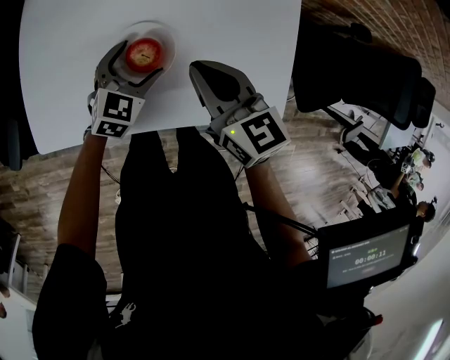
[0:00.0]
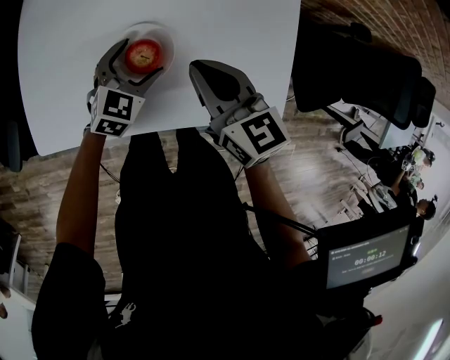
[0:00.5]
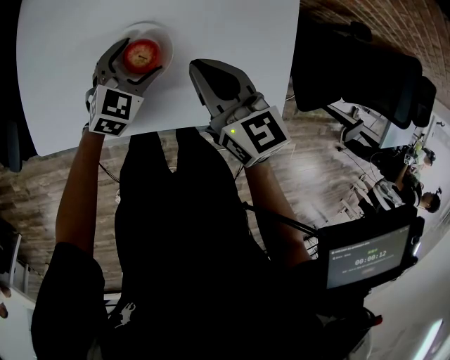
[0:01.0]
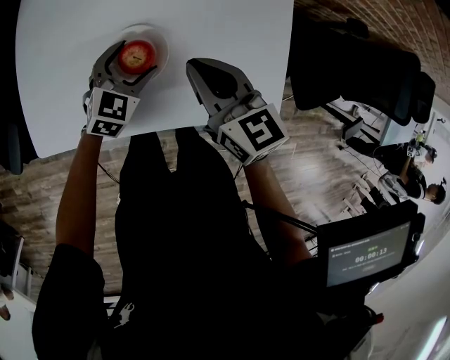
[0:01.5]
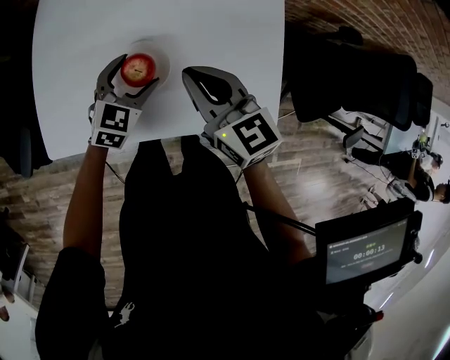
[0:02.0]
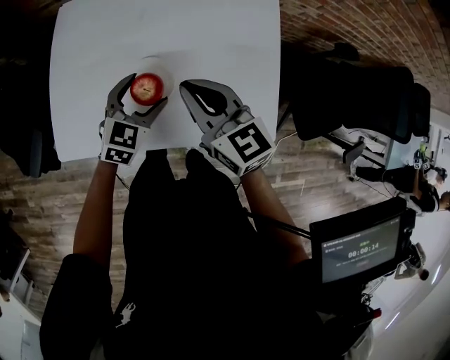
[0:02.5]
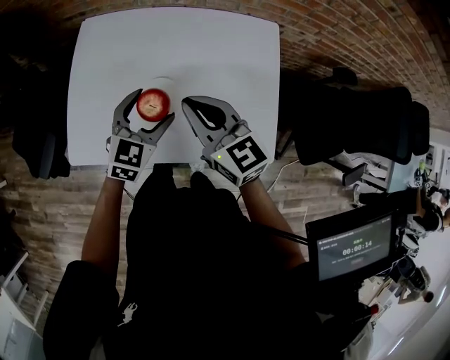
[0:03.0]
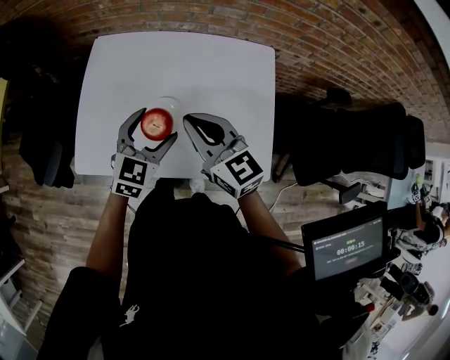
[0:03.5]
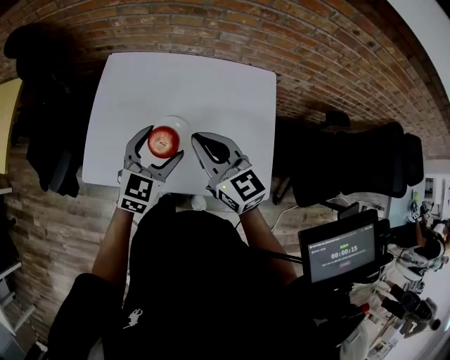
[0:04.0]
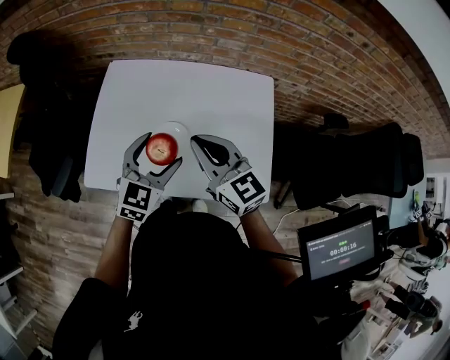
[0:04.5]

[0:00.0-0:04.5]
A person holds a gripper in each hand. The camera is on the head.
0:00.0 to 0:02.0: There are only small adjustments of the grippers.
0:02.0 to 0:04.5: The right gripper is displaced upward by approximately 10 cm, while the left gripper heads upward, covering approximately 20 cm.

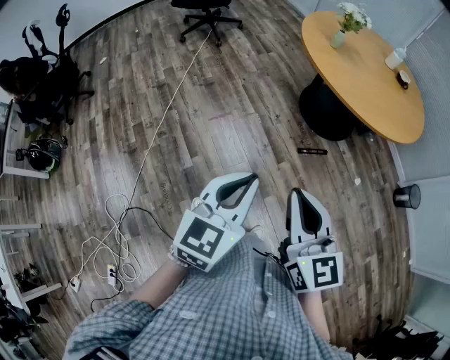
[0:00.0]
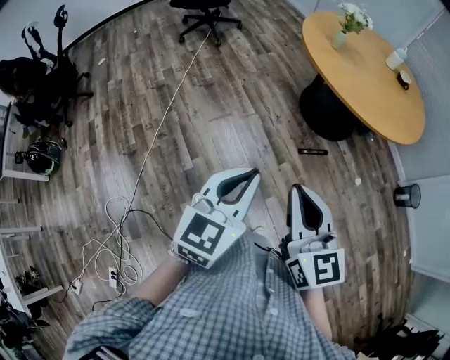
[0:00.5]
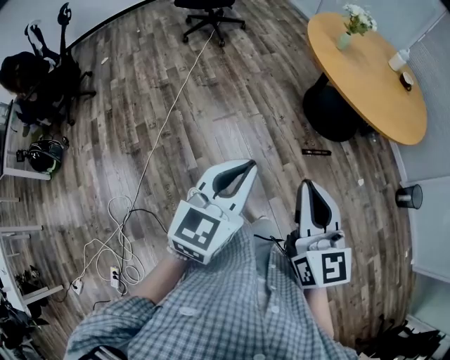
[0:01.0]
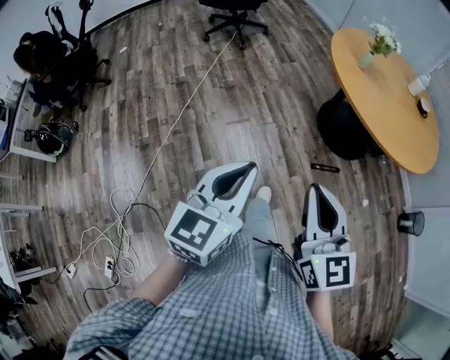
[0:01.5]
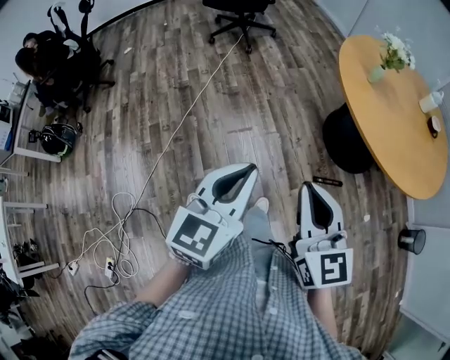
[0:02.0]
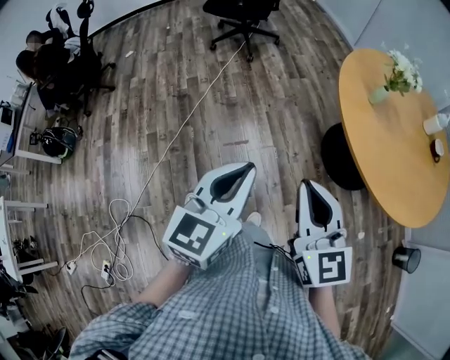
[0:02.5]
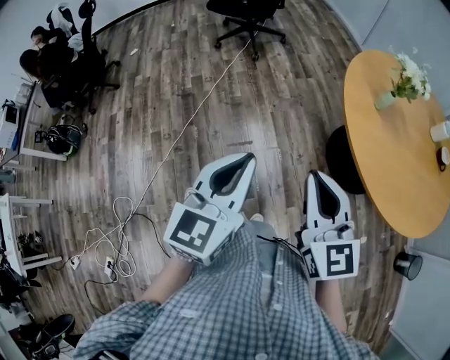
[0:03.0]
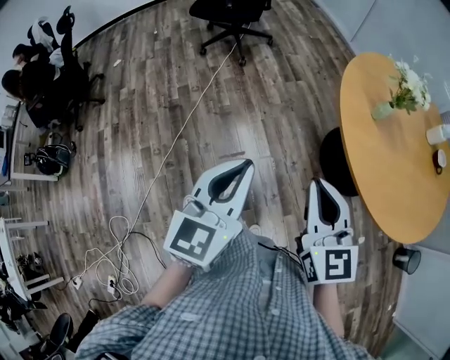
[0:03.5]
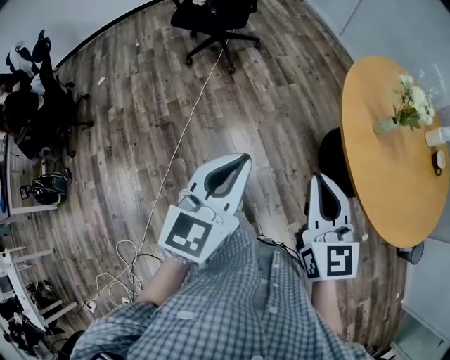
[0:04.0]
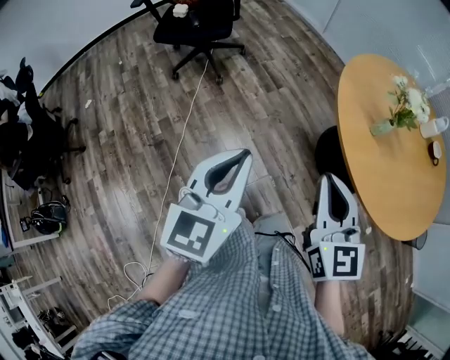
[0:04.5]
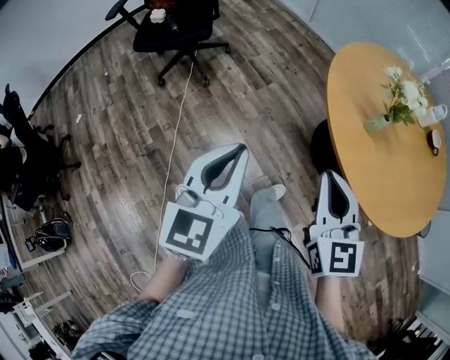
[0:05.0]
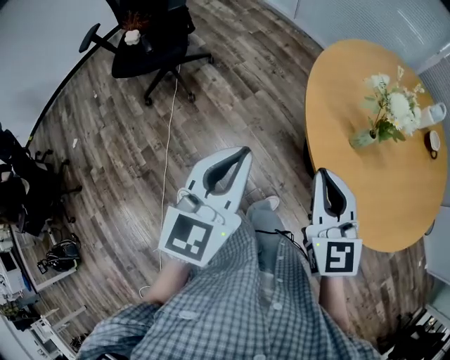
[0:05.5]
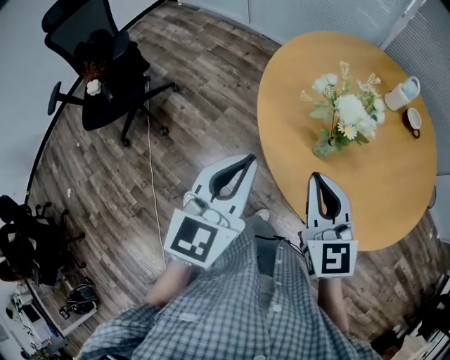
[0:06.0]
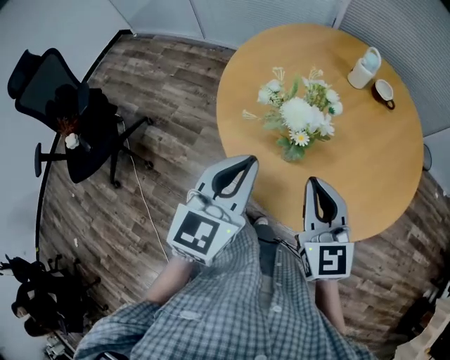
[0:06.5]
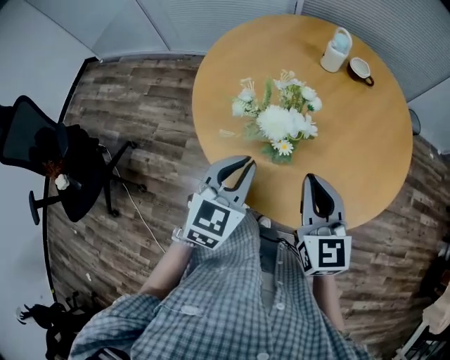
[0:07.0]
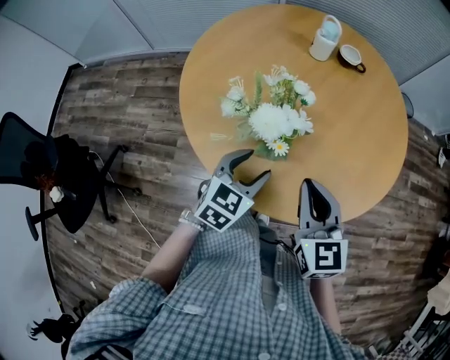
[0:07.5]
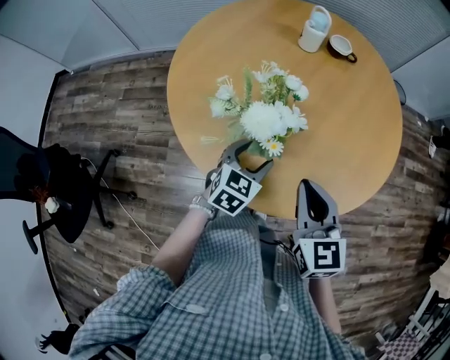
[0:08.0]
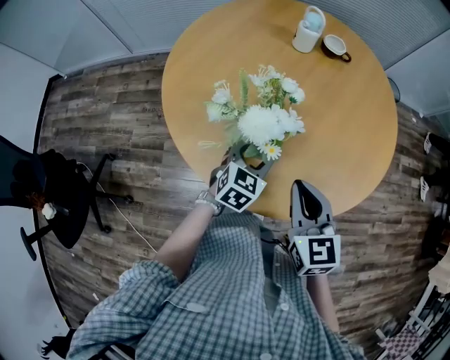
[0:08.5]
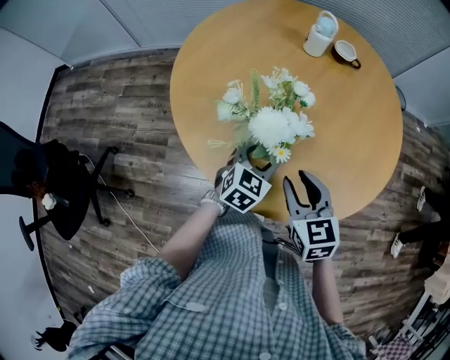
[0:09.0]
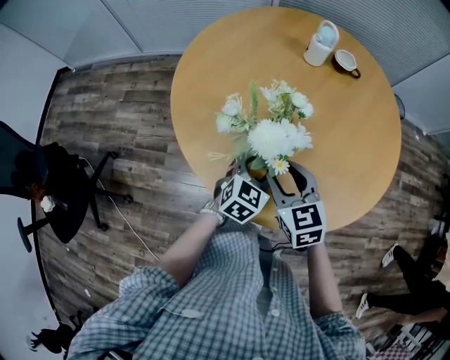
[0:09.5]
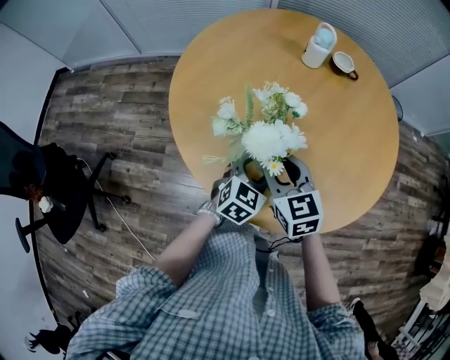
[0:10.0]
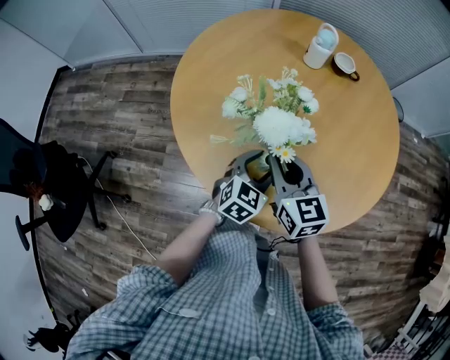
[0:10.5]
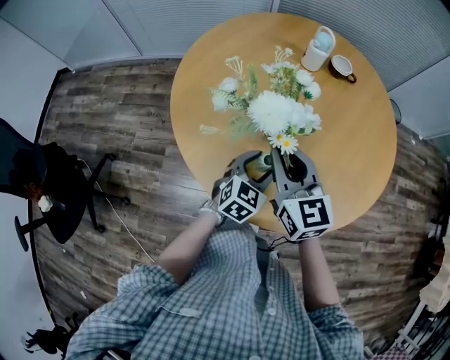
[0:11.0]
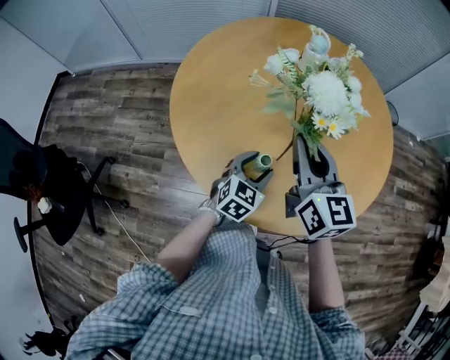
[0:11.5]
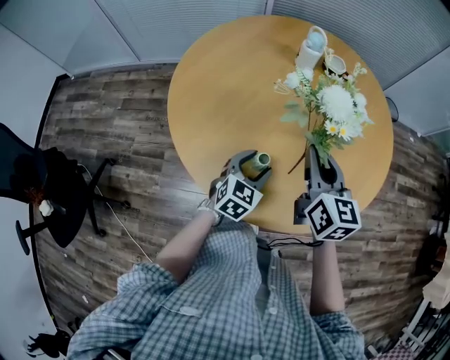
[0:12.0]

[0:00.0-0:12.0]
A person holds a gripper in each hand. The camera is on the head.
0:00.0 to 0:02.0: The grippers both shift forward by about 15 cm.
0:02.0 to 0:04.0: The two grippers go roughly 35 cm forward.
0:04.0 to 0:06.0: The right gripper moves some 30 cm, and changes its angle by about 30 degrees; the left gripper shifts by approximately 40 cm, and swivels approximately 30 degrees.
0:06.0 to 0:08.0: The left gripper changes place by approximately 30 cm, swivels some 50 degrees, and opens up; the right gripper changes place by approximately 10 cm, and changes its angle by approximately 40 degrees.
0:08.0 to 0:10.0: The right gripper moves forward, to the left and downward, about 15 cm, and opens up.
0:10.0 to 0:12.0: The right gripper heads to the right and upward, covering some 15 cm, turns by some 30 degrees, and closes its fingers.

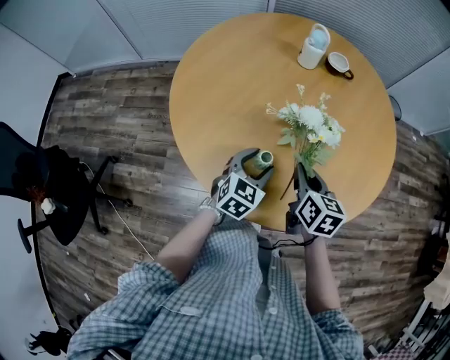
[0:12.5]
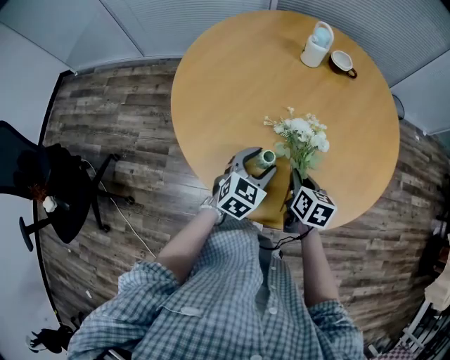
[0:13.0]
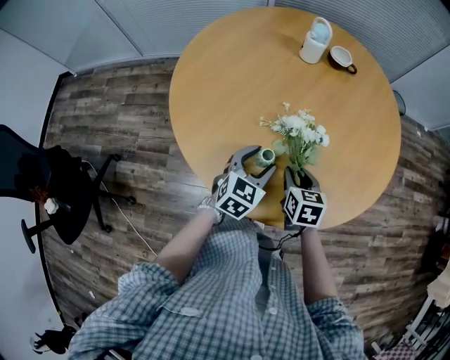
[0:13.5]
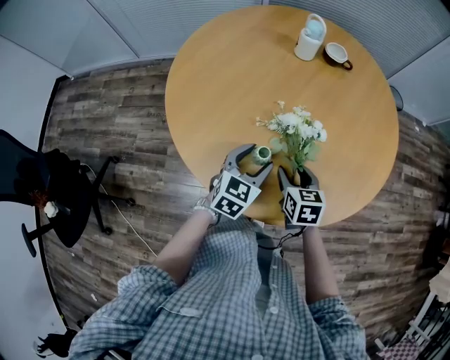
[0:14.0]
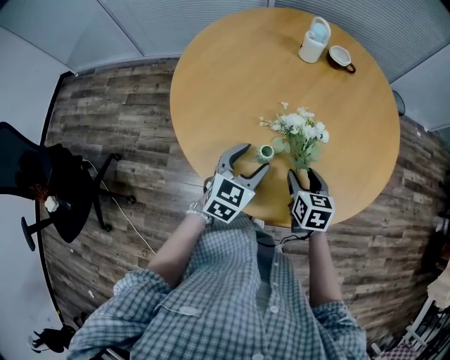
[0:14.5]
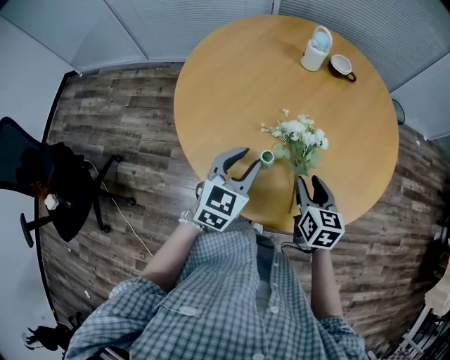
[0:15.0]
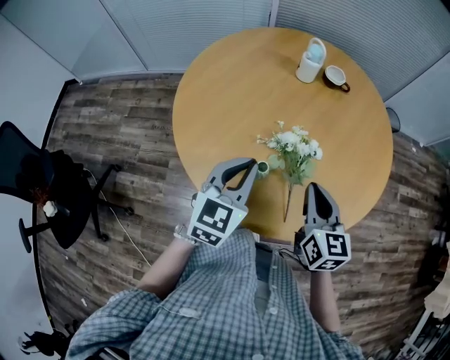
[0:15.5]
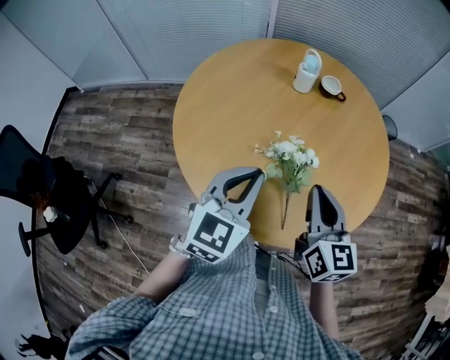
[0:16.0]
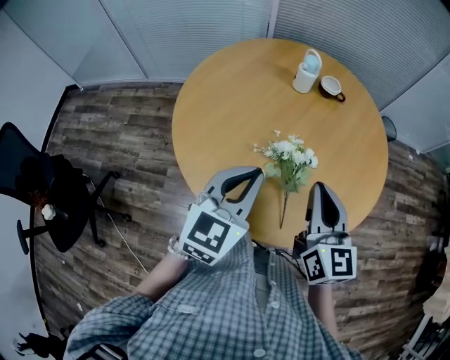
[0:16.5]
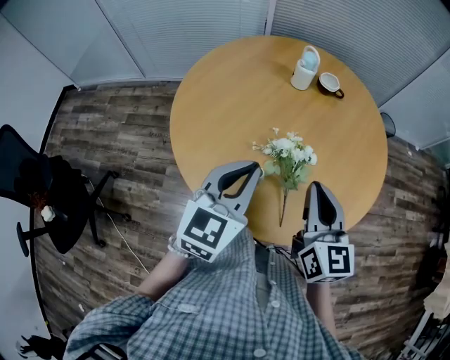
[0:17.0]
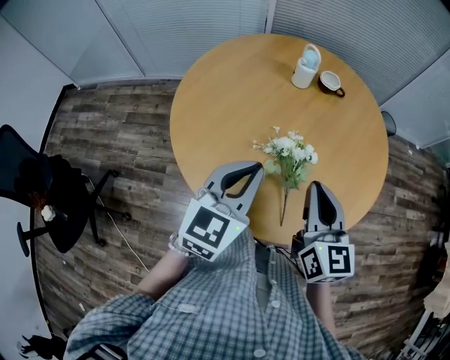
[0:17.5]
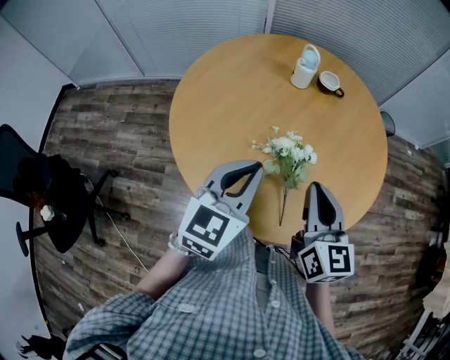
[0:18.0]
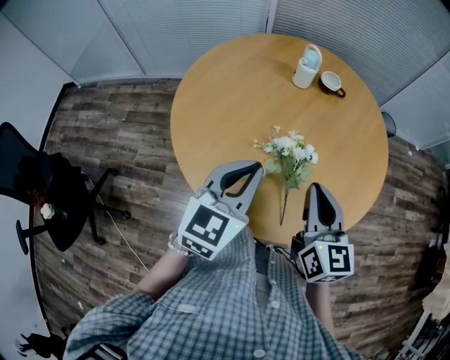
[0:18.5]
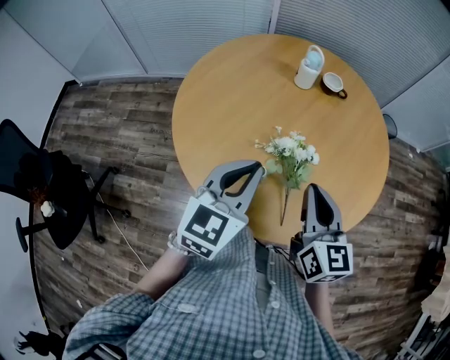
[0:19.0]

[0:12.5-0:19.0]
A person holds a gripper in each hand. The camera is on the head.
0:12.5 to 0:14.5: The right gripper heads downward, covering roughly 5 cm, and opens.
0:14.5 to 0:17.0: Both grippers move upward, roughly 20 cm. The left gripper closes its fingers, while the right gripper angles its fingers upward, by roughly 30 degrees, and closes.
0:17.0 to 0:19.0: The grippers stay close to where they were, moving slightly.

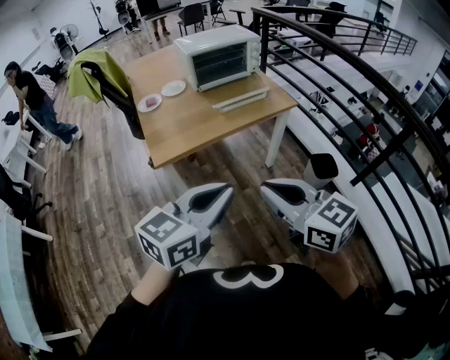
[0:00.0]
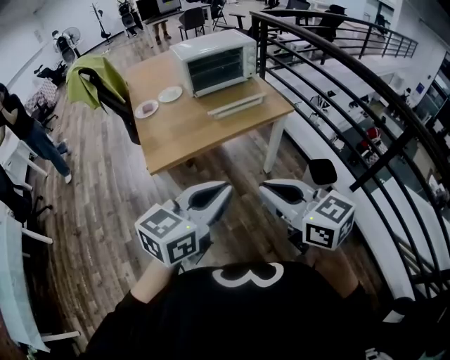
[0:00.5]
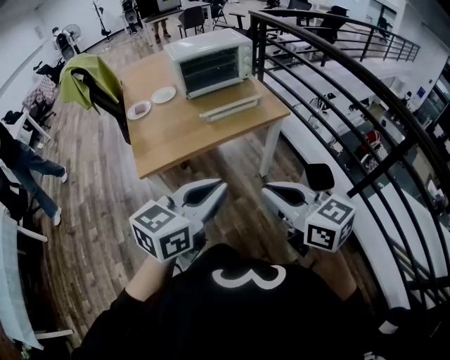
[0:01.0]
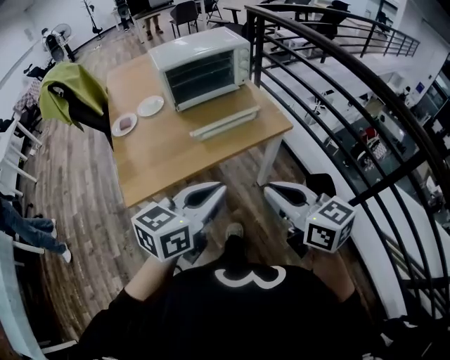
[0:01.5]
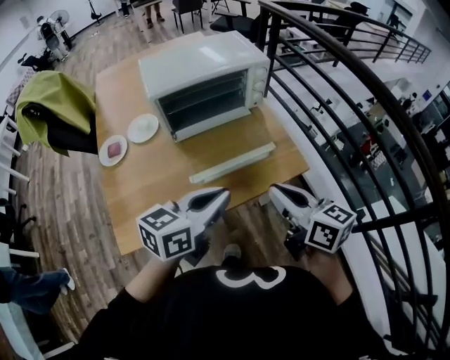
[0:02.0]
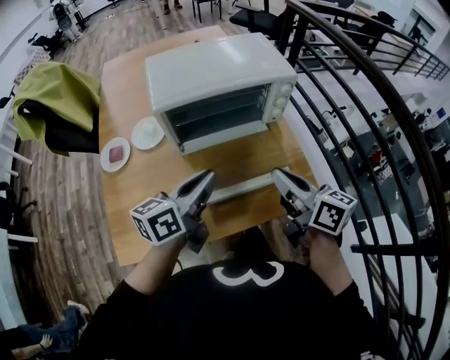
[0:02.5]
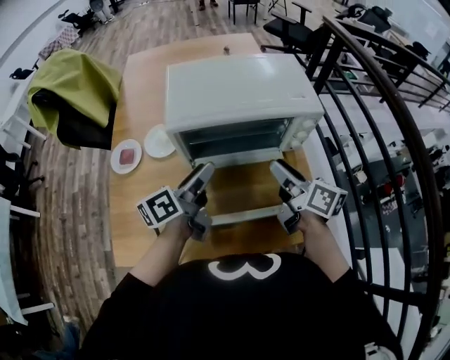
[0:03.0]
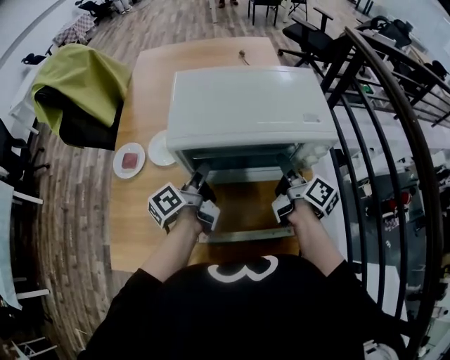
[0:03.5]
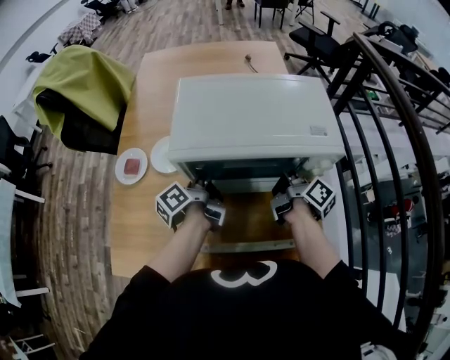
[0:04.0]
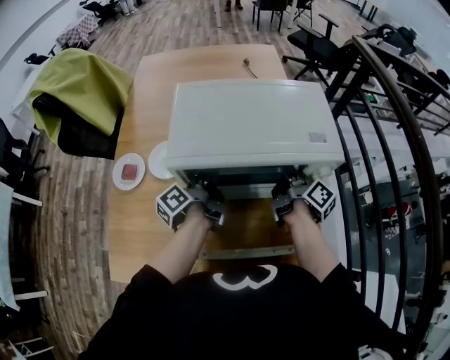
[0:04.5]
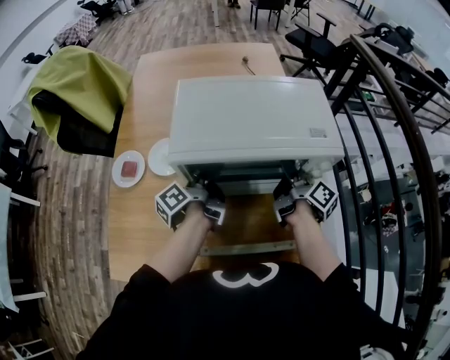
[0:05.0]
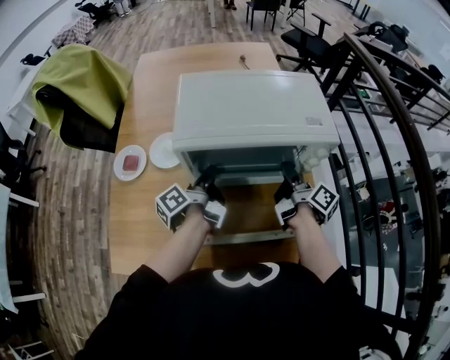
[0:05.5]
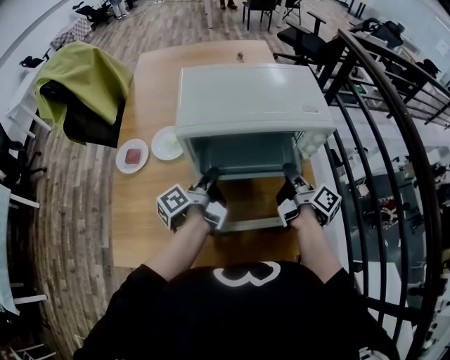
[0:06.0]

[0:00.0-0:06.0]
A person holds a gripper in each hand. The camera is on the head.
0:00.0 to 0:02.0: The pair of grippers is taken forward, roughly 50 cm. The right gripper turns by roughly 20 degrees.
0:02.0 to 0:04.0: The two grippers go approximately 40 cm forward. The right gripper rotates around the line of its fingers by about 40 degrees, clockwise from behind, and opens. Meanwhile the left gripper swivels roughly 80 degrees, and opens up.
0:04.0 to 0:06.0: Both grippers move backward, some 10 cm. The right gripper closes; the left gripper closes up.
